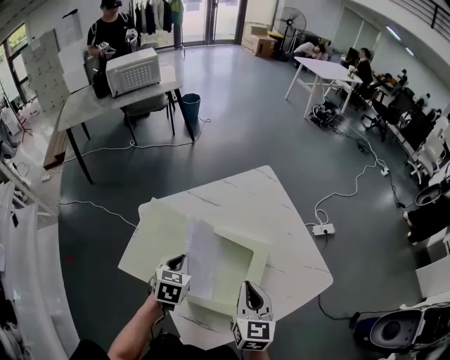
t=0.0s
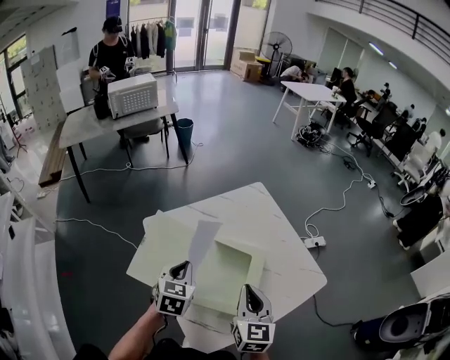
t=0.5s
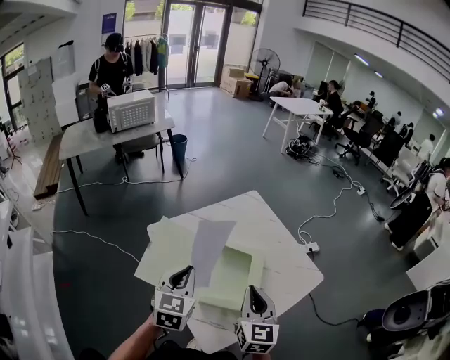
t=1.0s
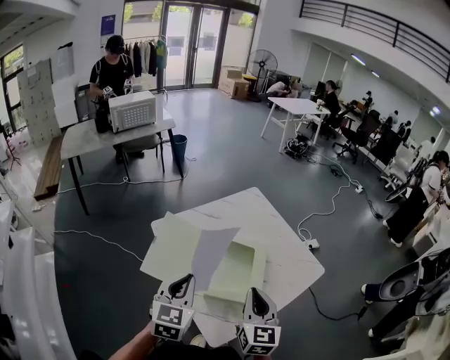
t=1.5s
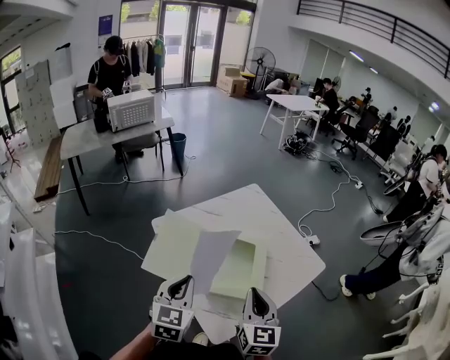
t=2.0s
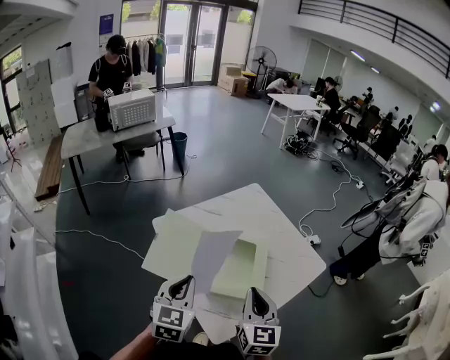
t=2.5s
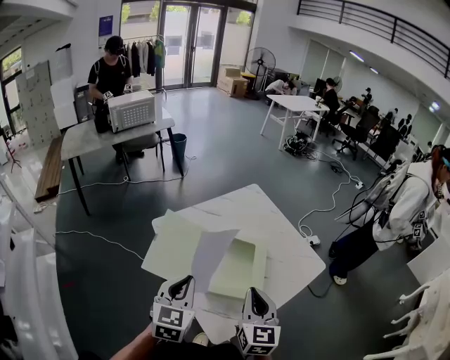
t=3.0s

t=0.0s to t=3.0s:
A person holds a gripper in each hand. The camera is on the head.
t=0.0s to t=1.5s: Both grippers move backward and upward, roughly 25 cm. The left gripper rotates approximately 30 degrees.
t=1.5s to t=3.0s: The grippers move only a little.

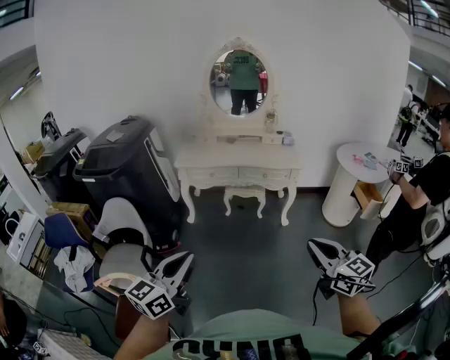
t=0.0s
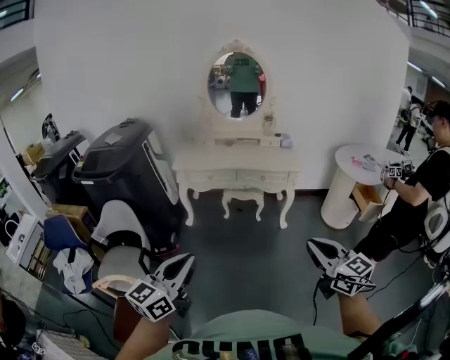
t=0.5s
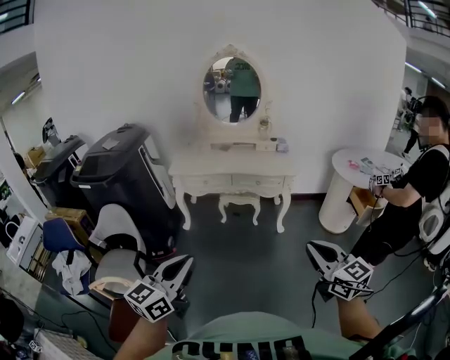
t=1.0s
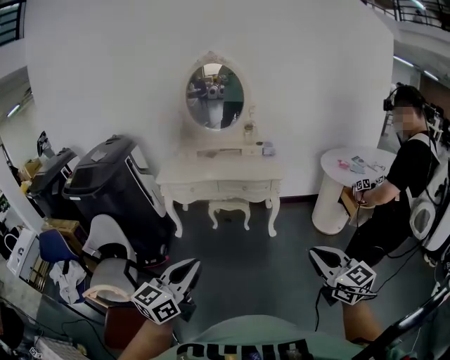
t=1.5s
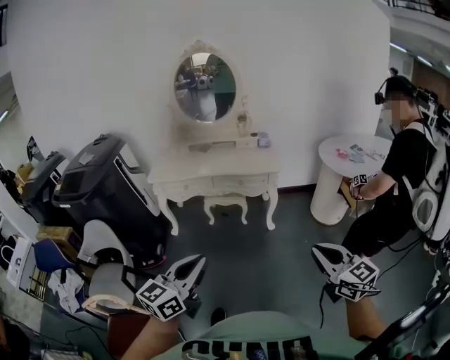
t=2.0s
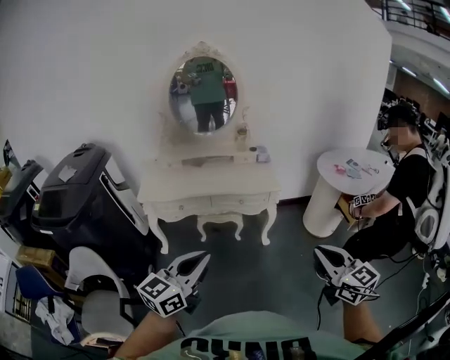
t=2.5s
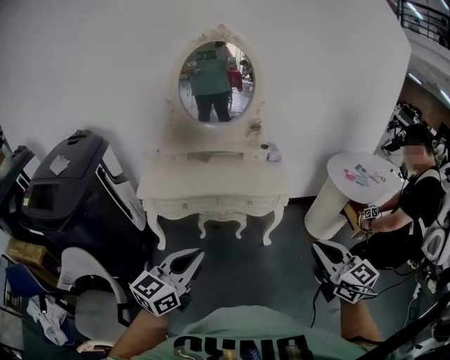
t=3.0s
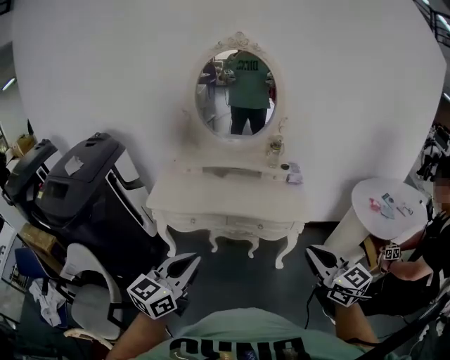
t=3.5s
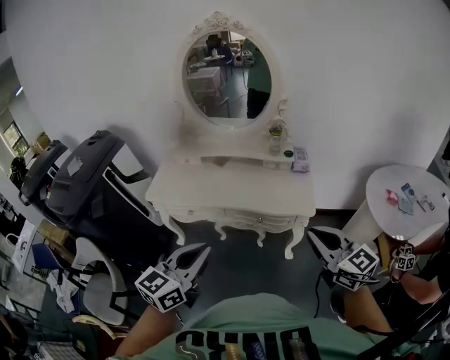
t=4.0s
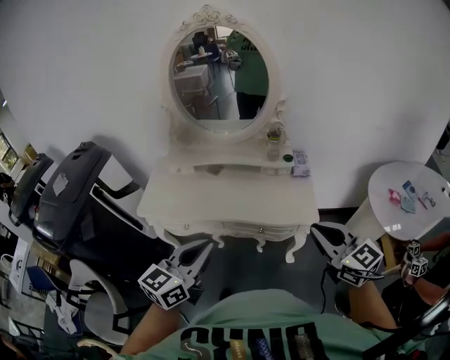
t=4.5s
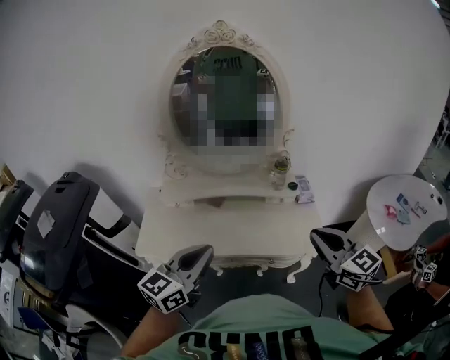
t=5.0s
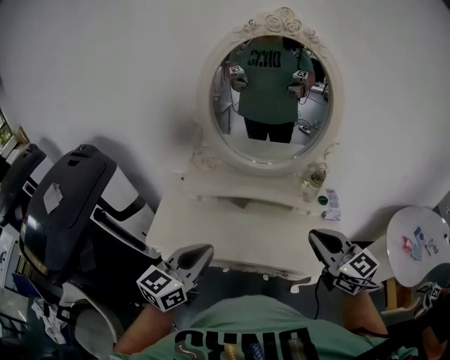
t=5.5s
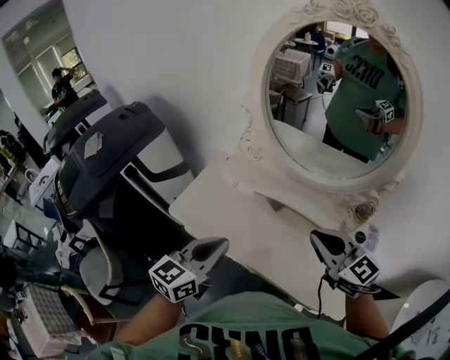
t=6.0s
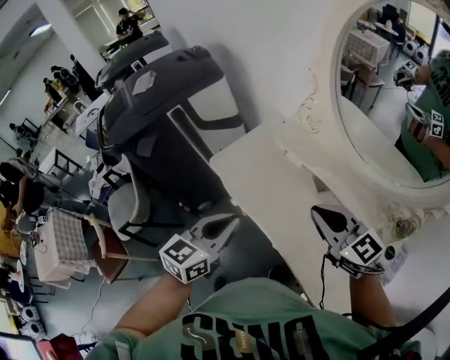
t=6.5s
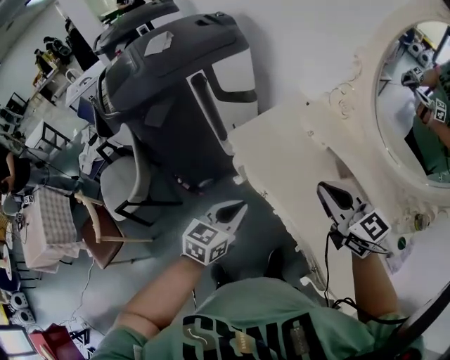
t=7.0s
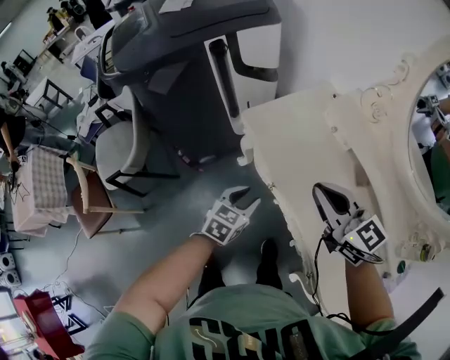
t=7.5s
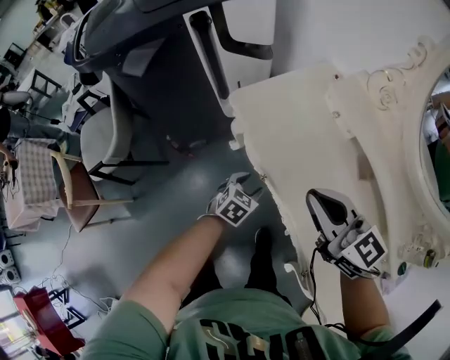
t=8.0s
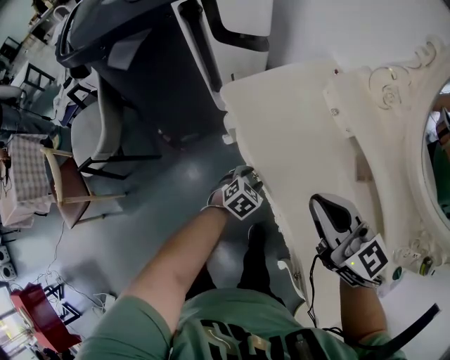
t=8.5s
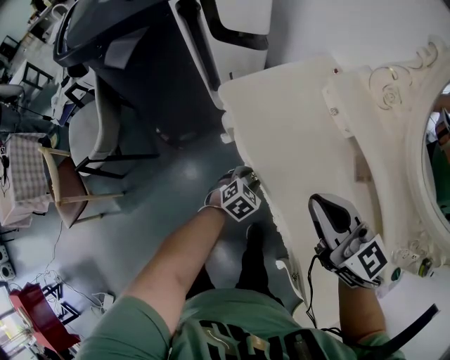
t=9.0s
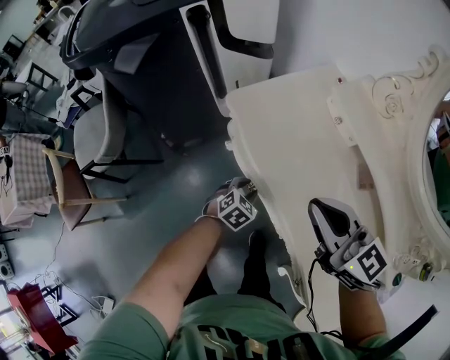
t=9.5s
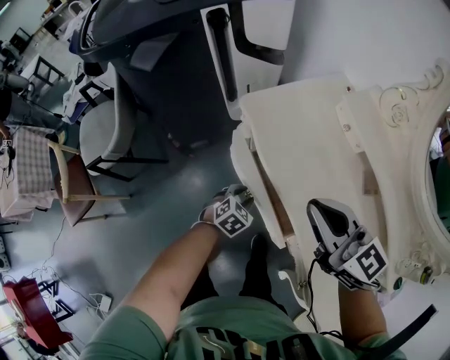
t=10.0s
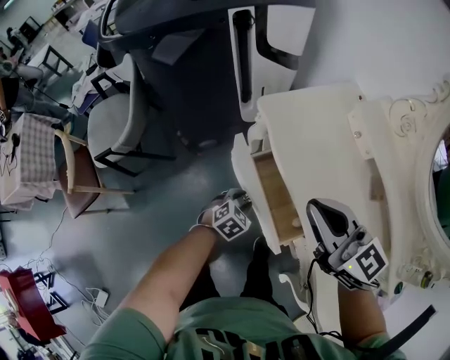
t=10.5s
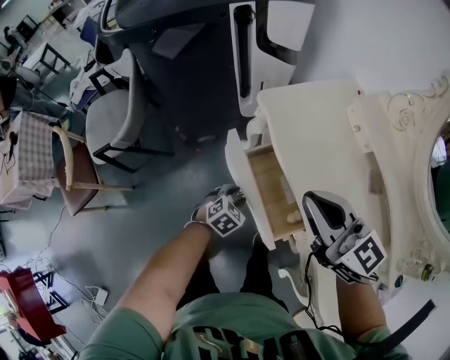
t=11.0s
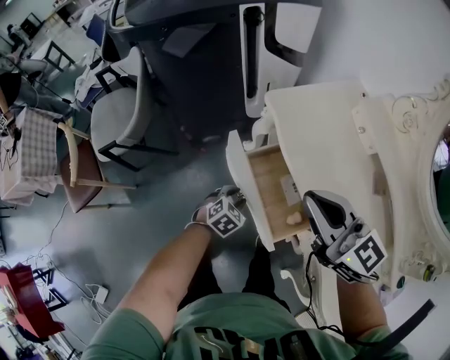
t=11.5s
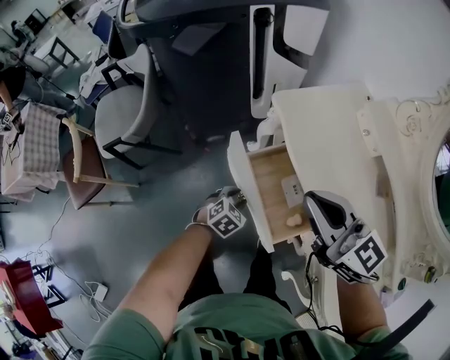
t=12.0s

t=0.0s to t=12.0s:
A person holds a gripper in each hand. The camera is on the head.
t=0.0s to t=2.0s: The left gripper heads to the right and forward, covering about 20 cm. The right gripper moves to the right, approximately 15 cm.
t=2.0s to t=4.0s: Both grippers are carried forward, roughly 50 cm.
t=4.0s to t=6.0s: The left gripper moves roughly 40 cm, and turns by roughly 20 degrees. The right gripper shifts by roughly 50 cm, and turns by some 30 degrees.
t=6.0s to t=8.0s: The left gripper travels downward by some 40 cm, tilts its fingers some 40 degrees downward, and opens, while the right gripper moves approximately 30 cm, and rotates some 30 degrees.
t=8.0s to t=10.0s: The left gripper changes place by roughly 5 cm.
t=10.0s to t=12.0s: Both grippers move to the left, about 10 cm.

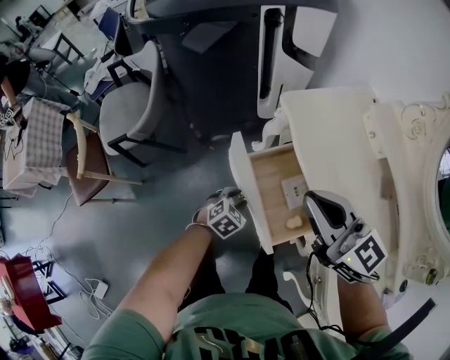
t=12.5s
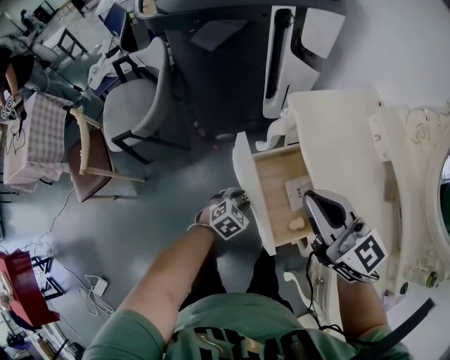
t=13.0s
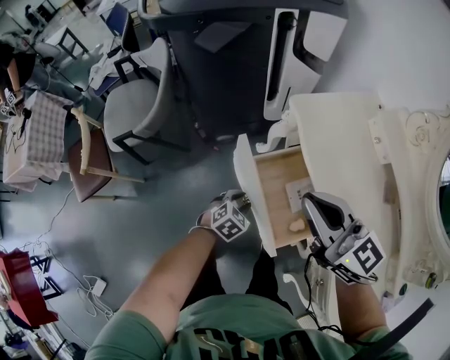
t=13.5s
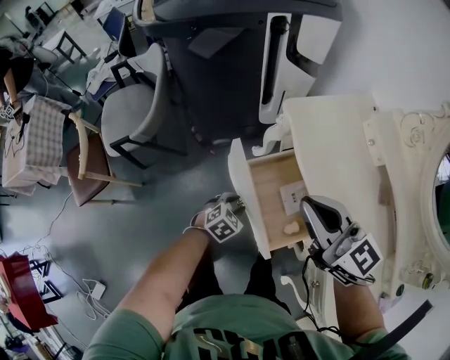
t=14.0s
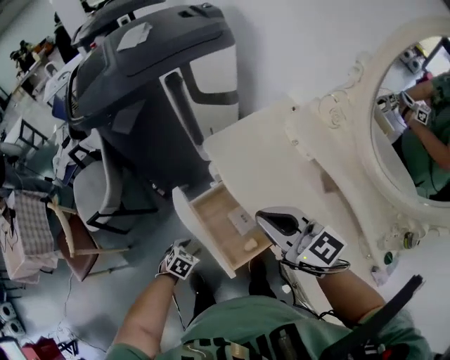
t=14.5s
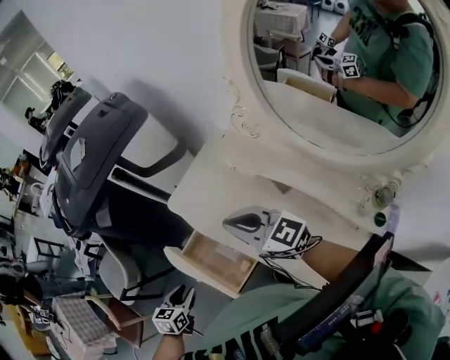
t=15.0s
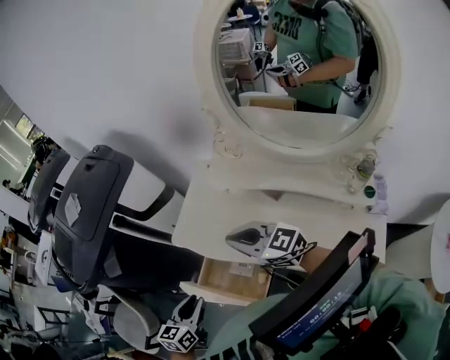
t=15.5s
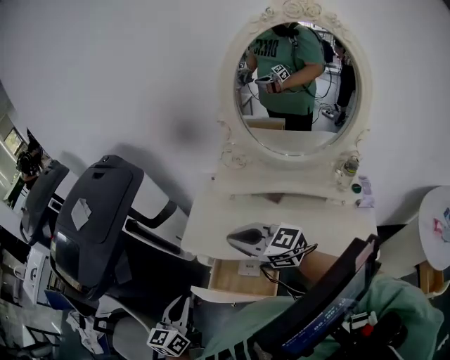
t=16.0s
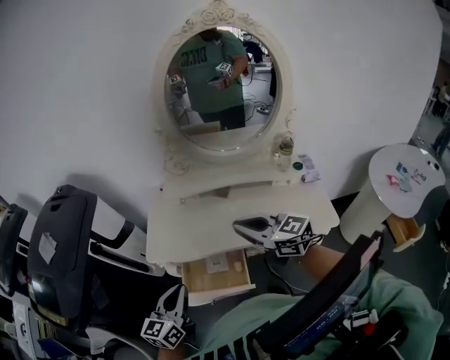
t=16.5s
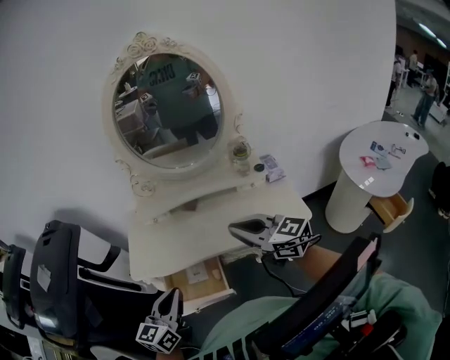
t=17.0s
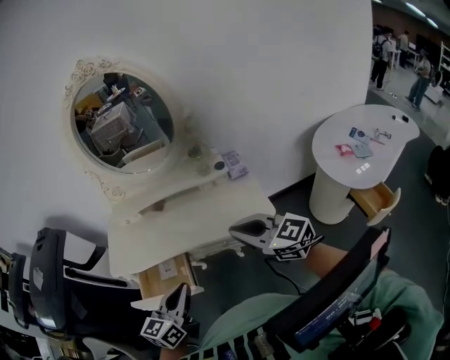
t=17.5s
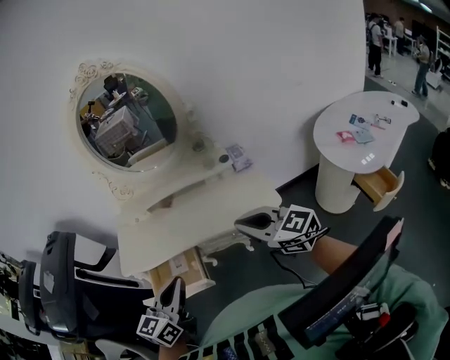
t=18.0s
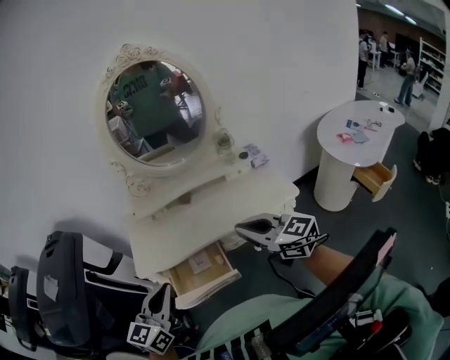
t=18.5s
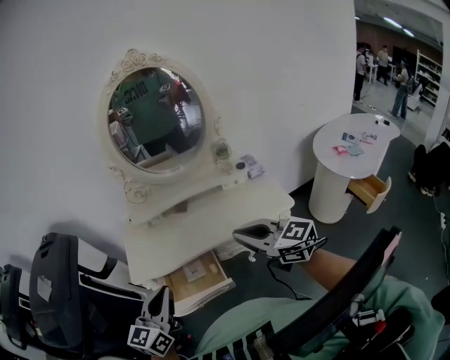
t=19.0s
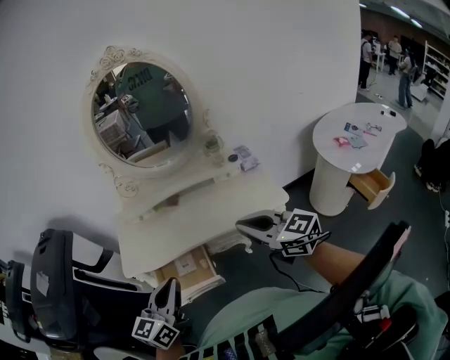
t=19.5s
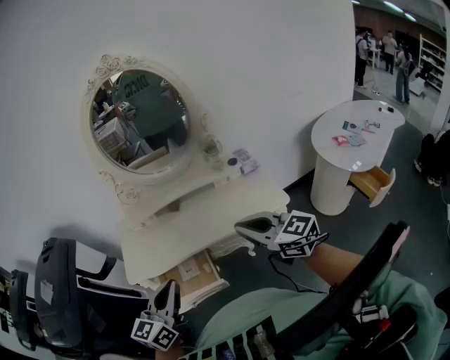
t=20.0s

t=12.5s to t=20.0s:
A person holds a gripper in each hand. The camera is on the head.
t=12.5s to t=14.5s: The left gripper moves some 5 cm. The right gripper goes about 5 cm to the right.
t=14.5s to t=16.5s: The right gripper heads upward, covering approximately 10 cm, and changes its angle by approximately 50 degrees. The left gripper travels upward by some 40 cm, angles its fingers upward, by approximately 60 degrees, and closes.
t=16.5s to t=18.0s: The grippers both shift to the right and backward by about 30 cm.
t=18.0s to t=20.0s: Both grippers move to the left, about 10 cm.

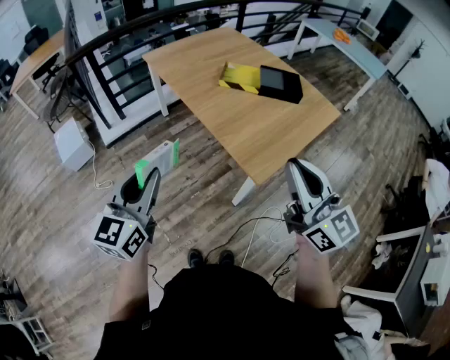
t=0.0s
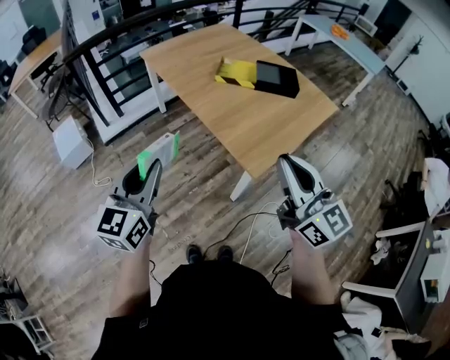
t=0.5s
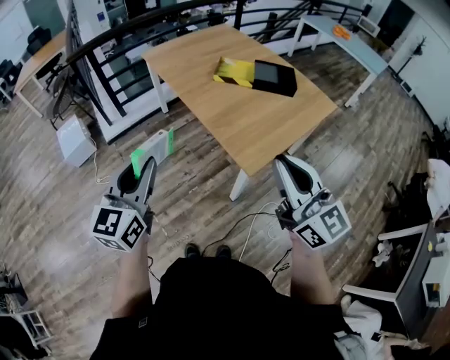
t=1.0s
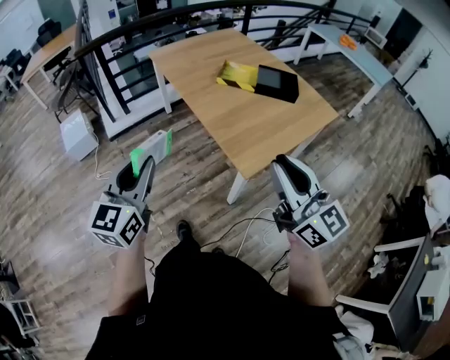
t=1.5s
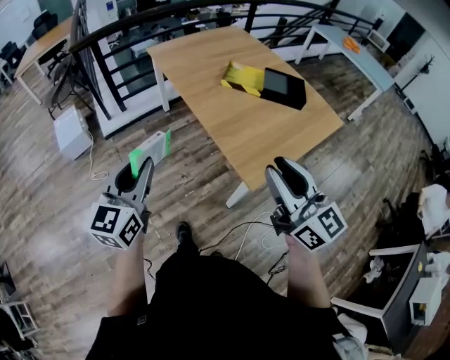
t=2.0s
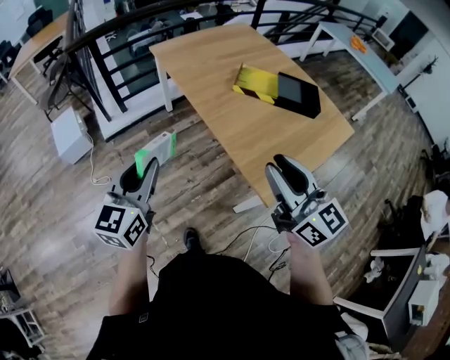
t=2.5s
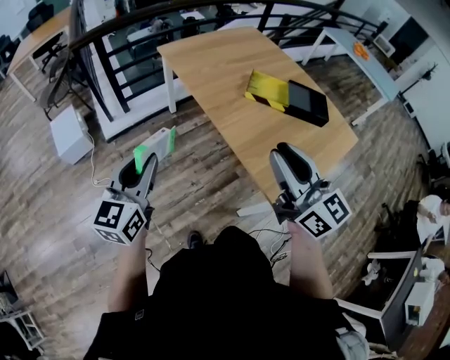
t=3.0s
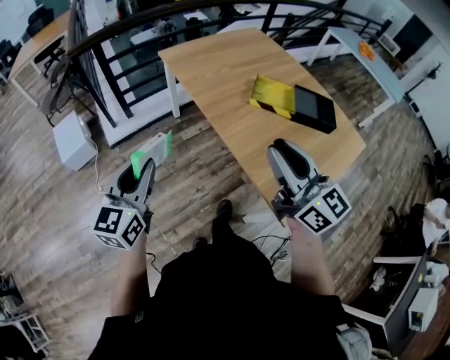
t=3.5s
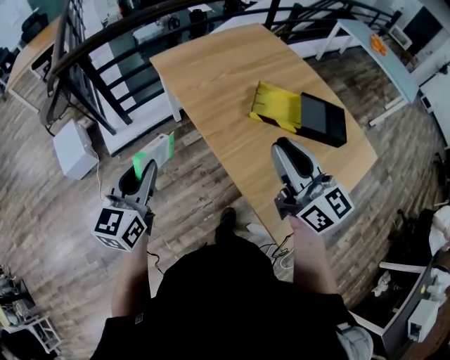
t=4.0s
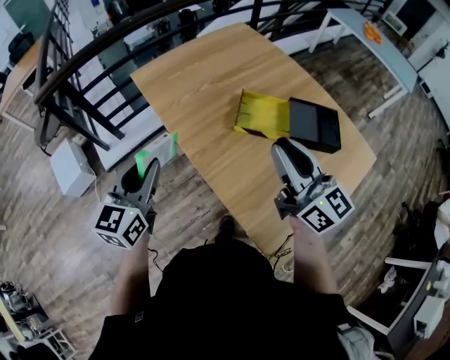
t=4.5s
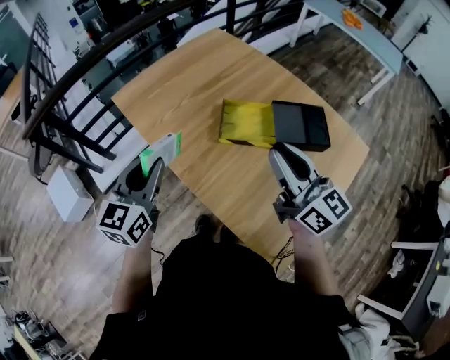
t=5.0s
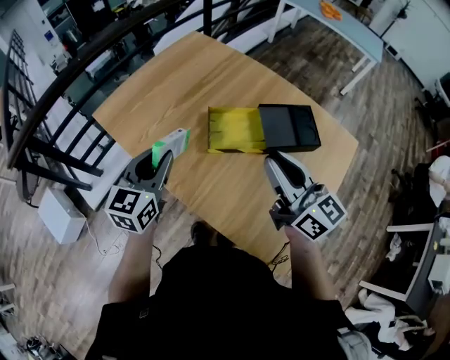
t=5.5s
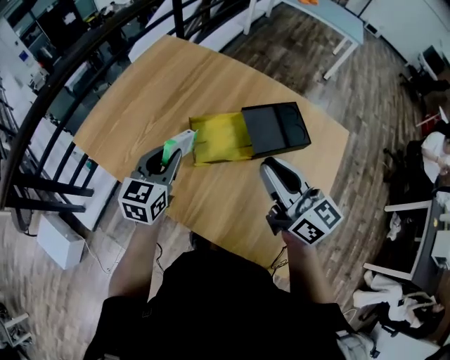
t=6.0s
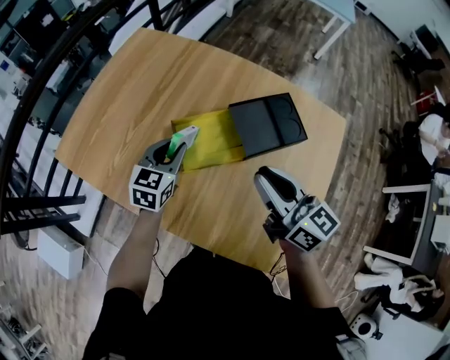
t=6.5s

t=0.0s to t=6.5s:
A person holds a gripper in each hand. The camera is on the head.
t=0.0s to t=2.0s: The grippers make only small movements.
t=2.0s to t=4.5s: Both grippers are carried forward, roughly 40 cm.
t=4.5s to t=6.5s: The left gripper ends up some 40 cm from where it was, and turns by about 40 degrees, while the right gripper changes place by roughly 15 cm, and changes its angle by roughly 30 degrees.
